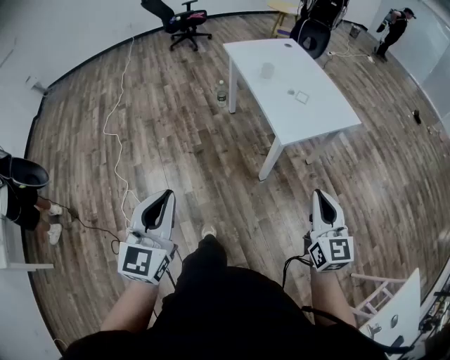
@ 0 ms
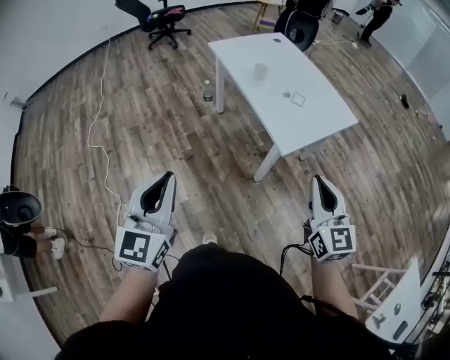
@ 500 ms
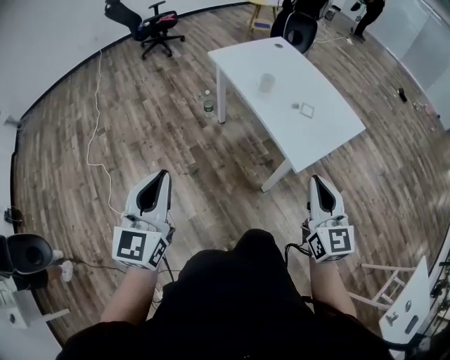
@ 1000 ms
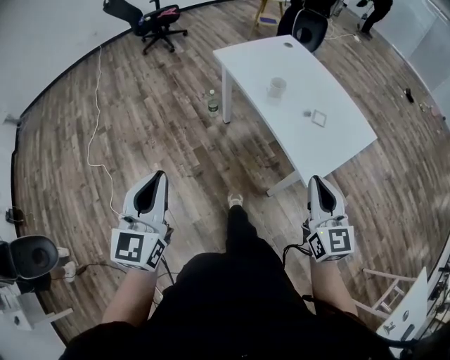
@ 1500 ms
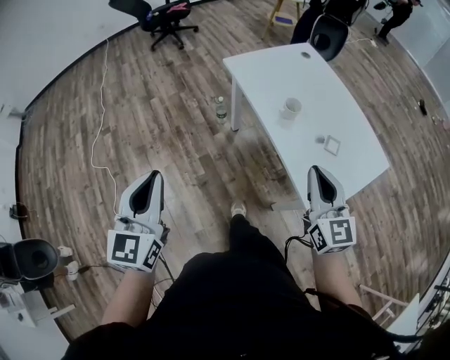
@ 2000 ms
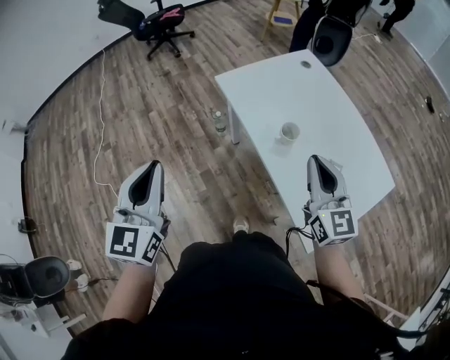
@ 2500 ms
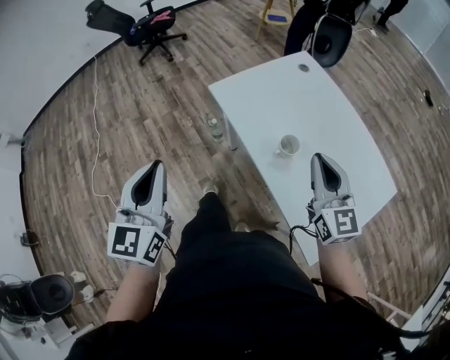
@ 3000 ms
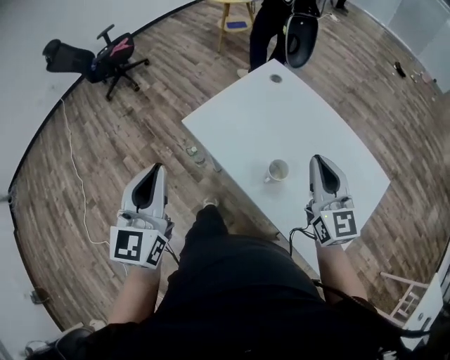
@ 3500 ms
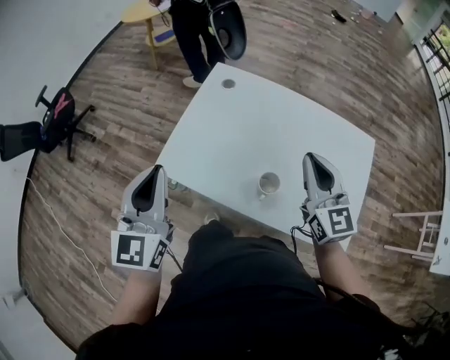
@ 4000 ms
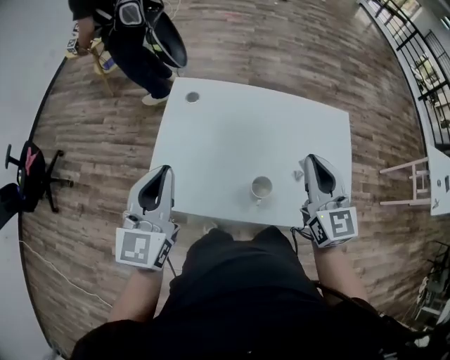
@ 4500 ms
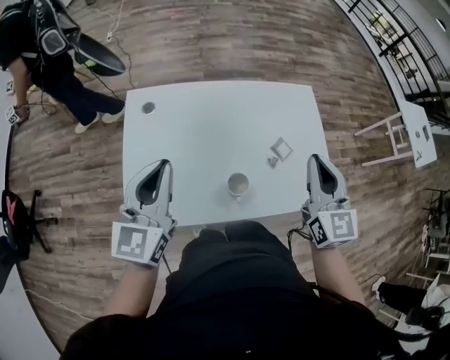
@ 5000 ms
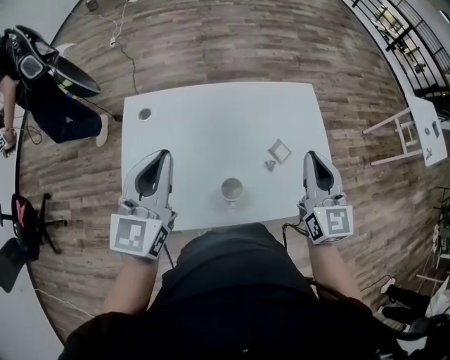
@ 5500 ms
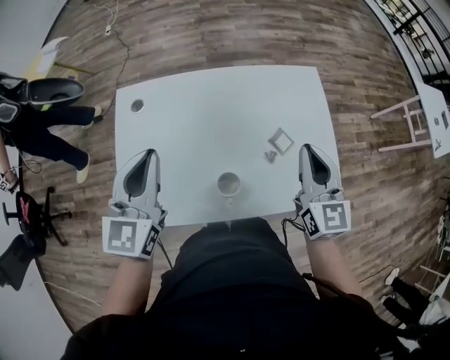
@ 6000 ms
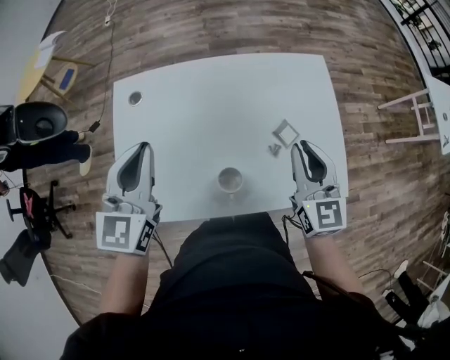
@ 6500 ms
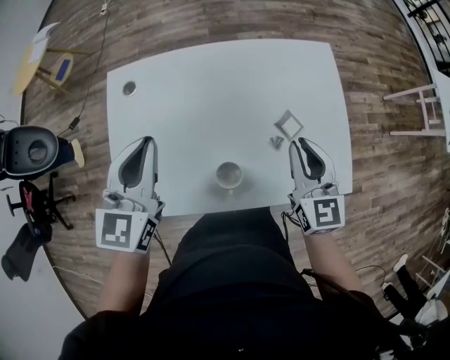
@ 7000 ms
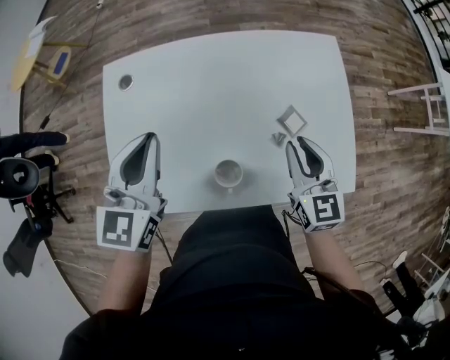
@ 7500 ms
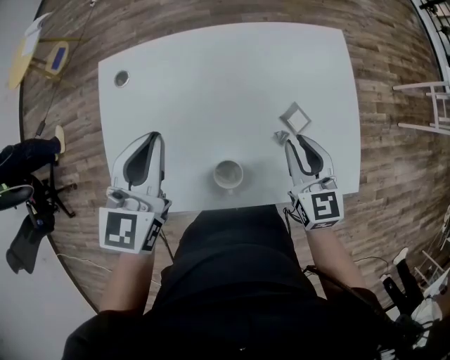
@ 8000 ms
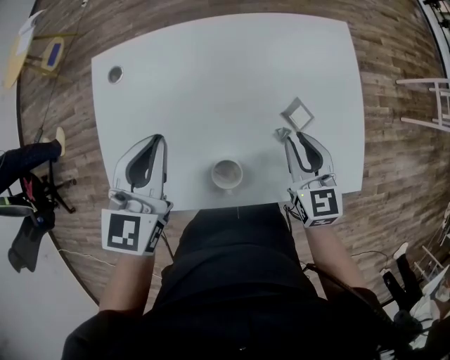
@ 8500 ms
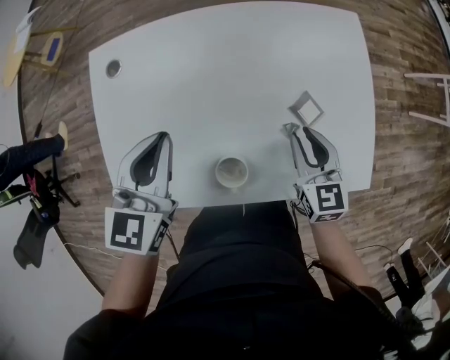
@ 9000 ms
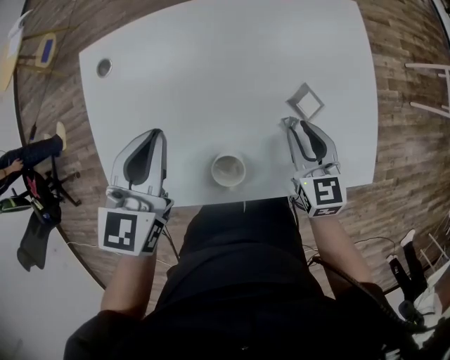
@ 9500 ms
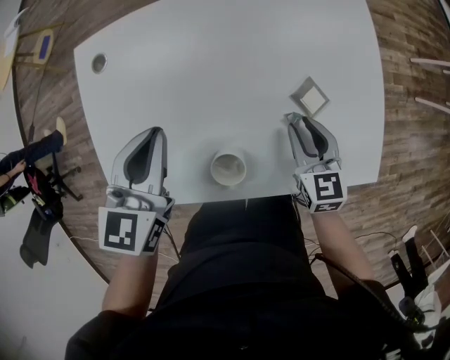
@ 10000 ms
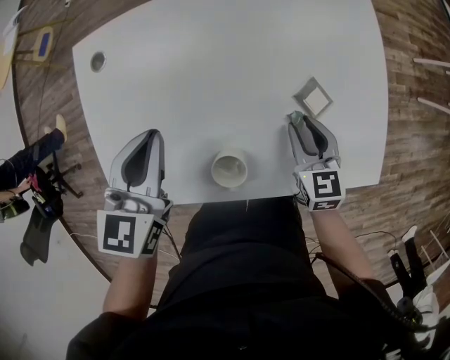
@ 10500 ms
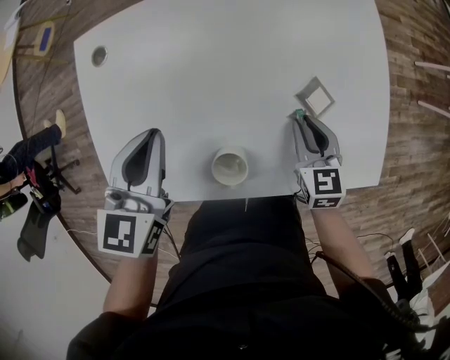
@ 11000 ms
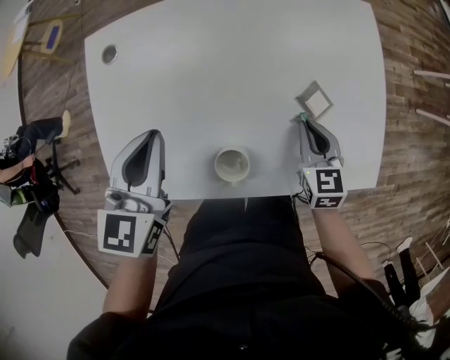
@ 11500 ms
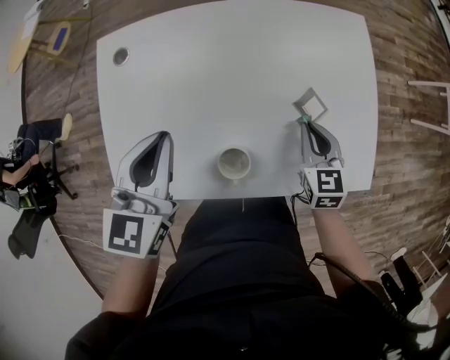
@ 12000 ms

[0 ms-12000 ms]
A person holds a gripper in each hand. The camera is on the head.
0 ms to 2000 ms: The left gripper moves forward, some 35 cm. Meanwhile the right gripper goes some 40 cm forward and to the left.
2000 ms to 4000 ms: The left gripper ends up about 50 cm from where it was, and rotates approximately 40 degrees. Meanwhile the right gripper moves roughly 25 cm, and turns by approximately 40 degrees.
4000 ms to 6000 ms: The left gripper shifts by some 20 cm, and rotates about 30 degrees. The right gripper ends up roughly 15 cm from where it was, and turns by approximately 40 degrees.
6000 ms to 8000 ms: The right gripper is displaced downward by some 10 cm, and opens; the left gripper changes place by roughly 5 cm.
8000 ms to 10000 ms: The two grippers go approximately 5 cm downward.
10000 ms to 12000 ms: The right gripper closes up.

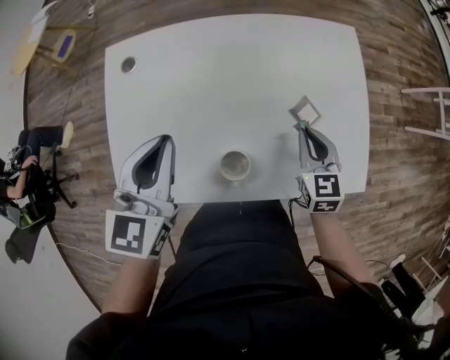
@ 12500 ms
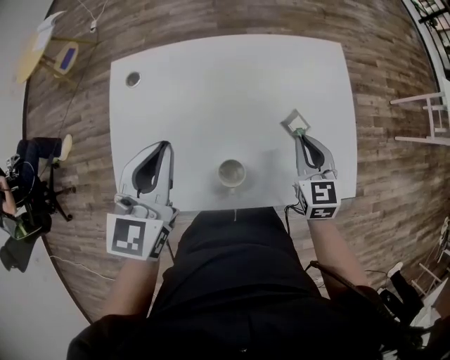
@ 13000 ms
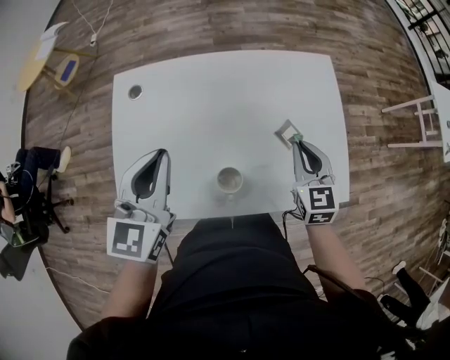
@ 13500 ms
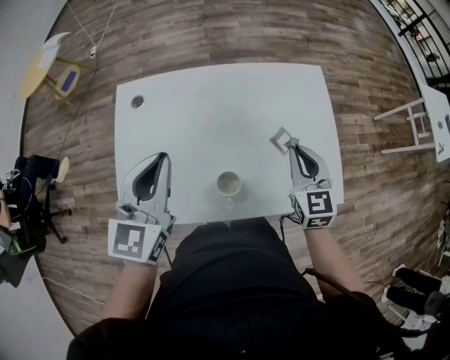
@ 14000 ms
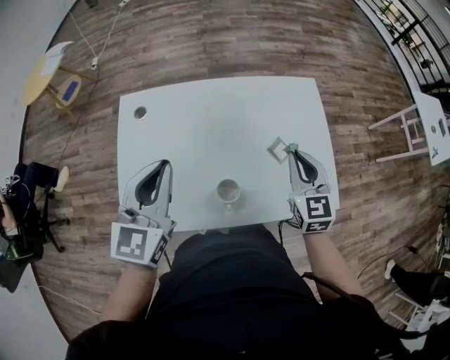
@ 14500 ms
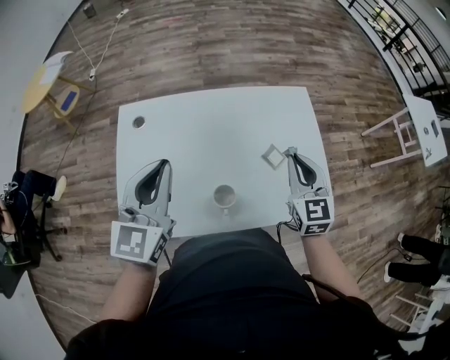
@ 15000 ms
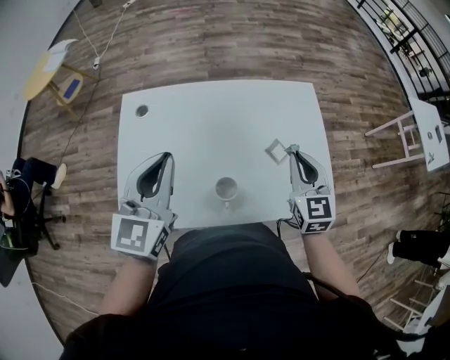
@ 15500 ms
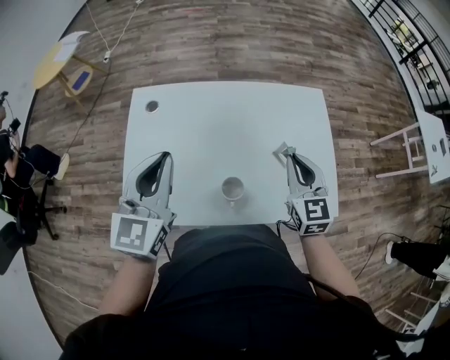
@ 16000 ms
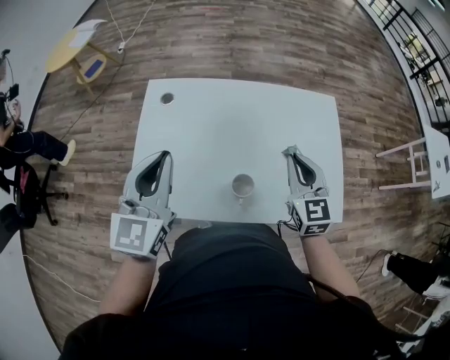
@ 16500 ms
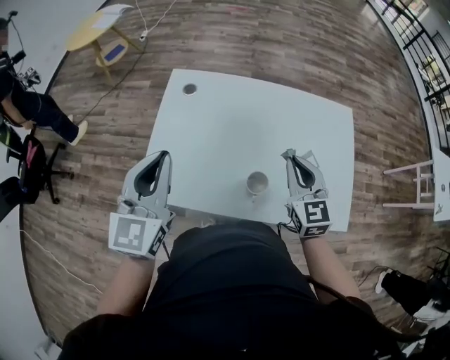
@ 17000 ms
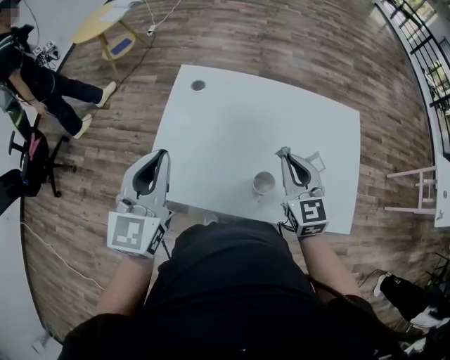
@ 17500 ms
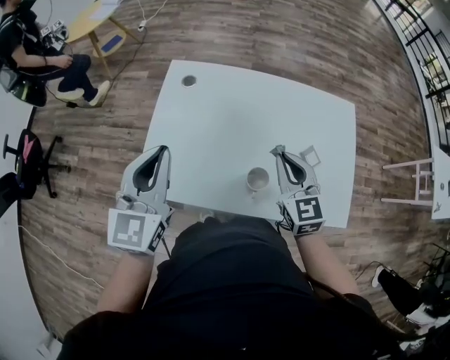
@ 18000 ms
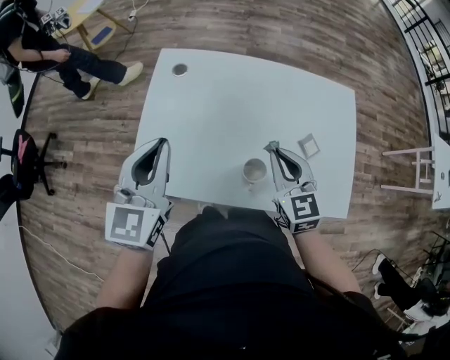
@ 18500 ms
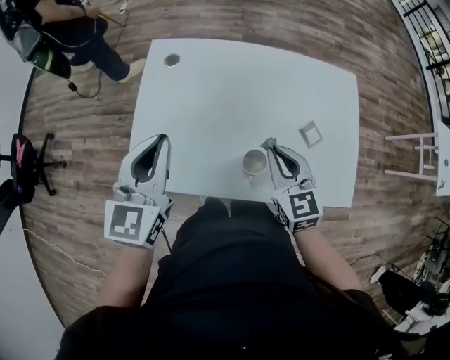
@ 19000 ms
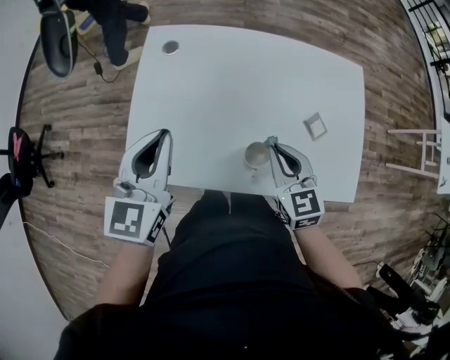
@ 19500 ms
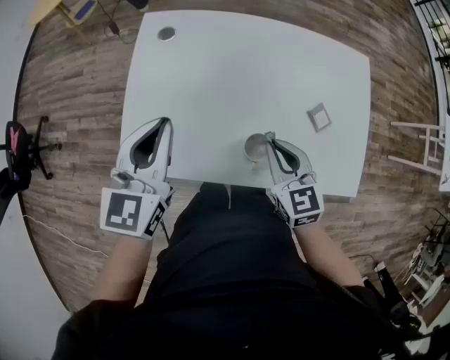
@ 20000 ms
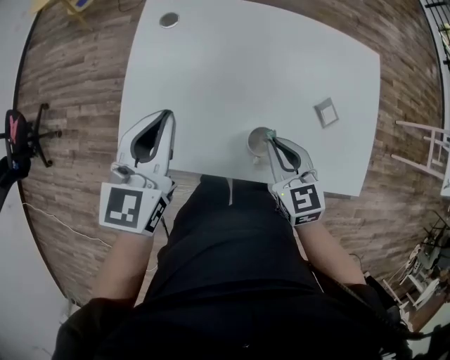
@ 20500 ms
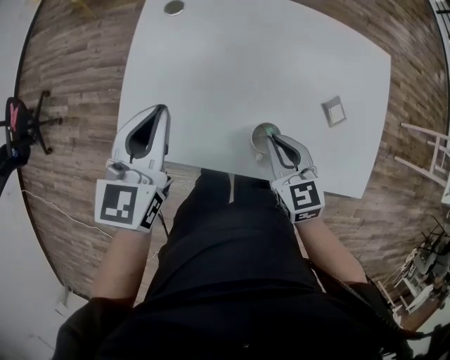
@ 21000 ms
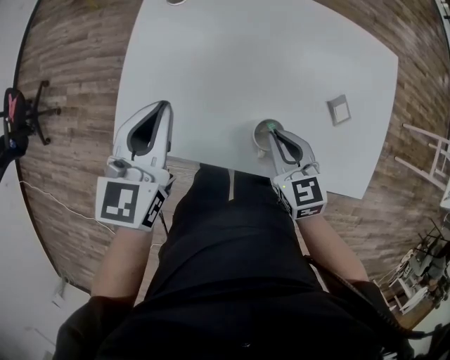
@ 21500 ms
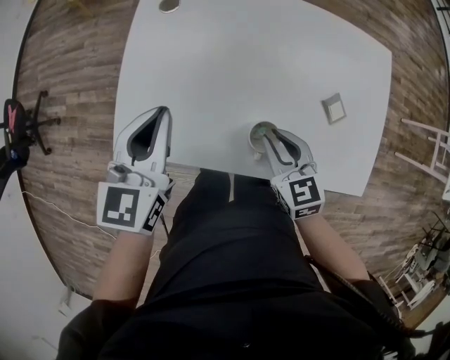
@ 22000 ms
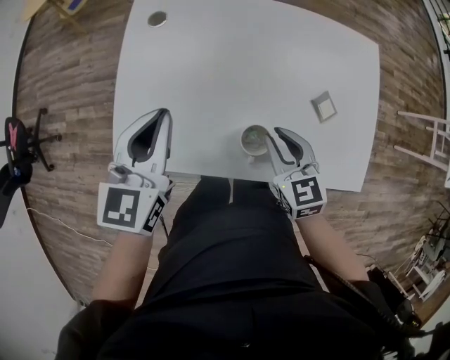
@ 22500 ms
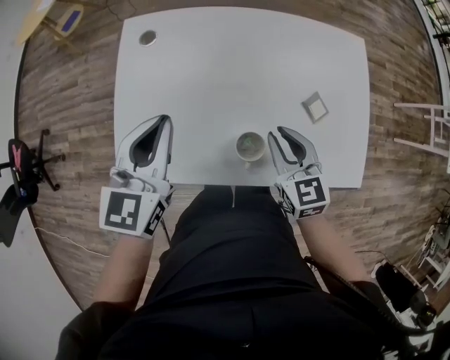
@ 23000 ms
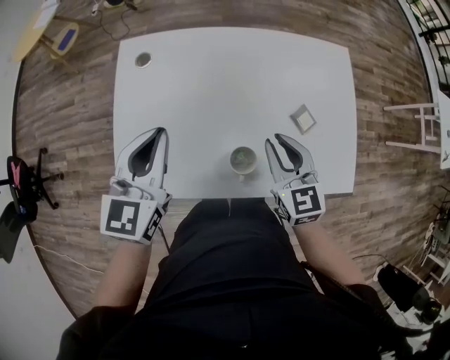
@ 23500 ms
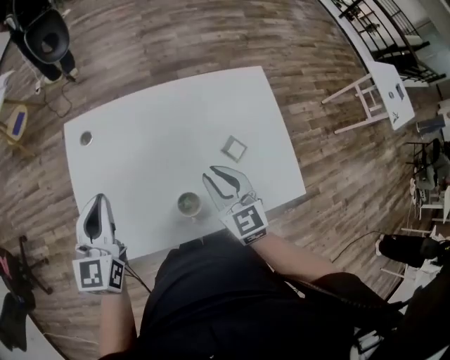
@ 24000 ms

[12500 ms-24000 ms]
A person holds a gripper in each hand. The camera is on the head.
12500 ms to 14500 ms: The right gripper heads upward, covering approximately 10 cm. The left gripper goes about 5 cm upward.
14500 ms to 16500 ms: The right gripper shifts roughly 5 cm to the left; the left gripper shifts by approximately 5 cm.
16500 ms to 18500 ms: The right gripper shifts about 10 cm to the left.
18500 ms to 20000 ms: The right gripper travels downward by roughly 5 cm.
20000 ms to 22000 ms: There are only small adjustments of the grippers.
22000 ms to 24000 ms: The left gripper moves forward, about 5 cm. The right gripper travels upward and forward by roughly 10 cm, and swivels about 30 degrees.

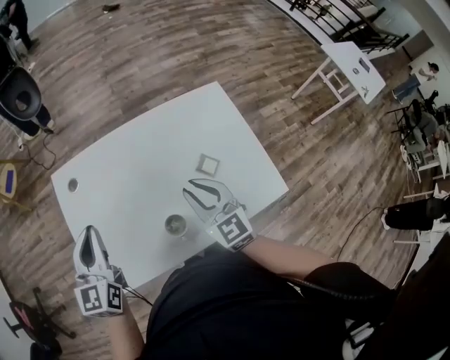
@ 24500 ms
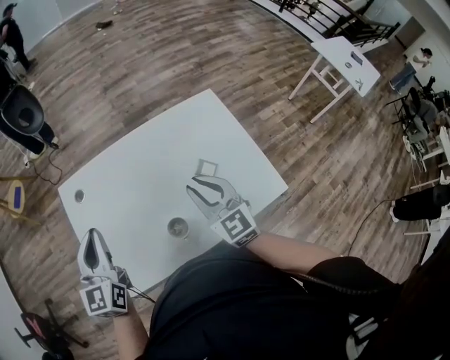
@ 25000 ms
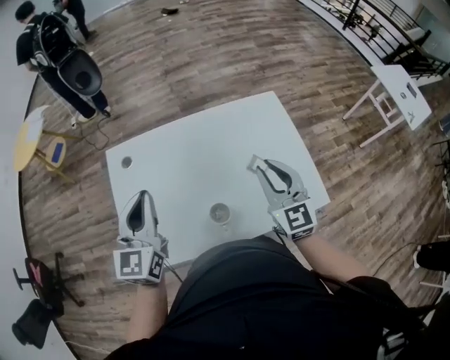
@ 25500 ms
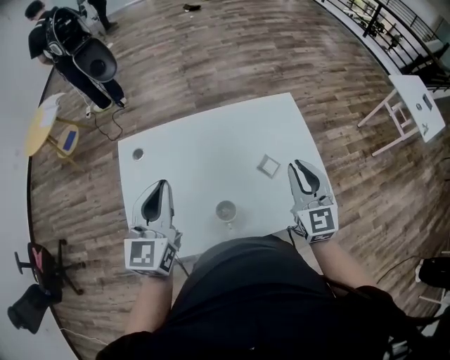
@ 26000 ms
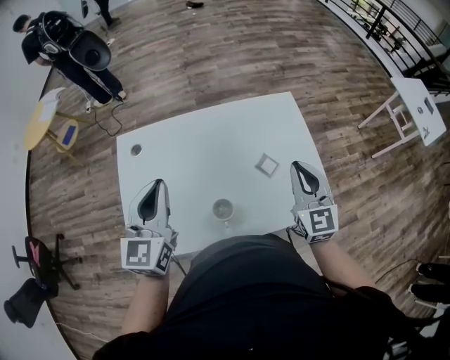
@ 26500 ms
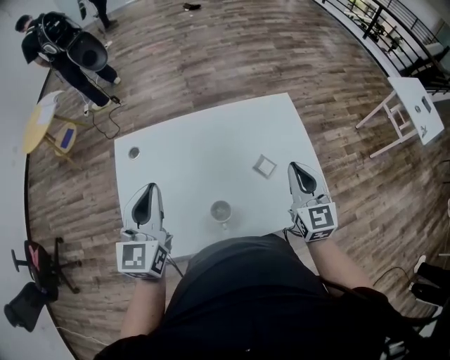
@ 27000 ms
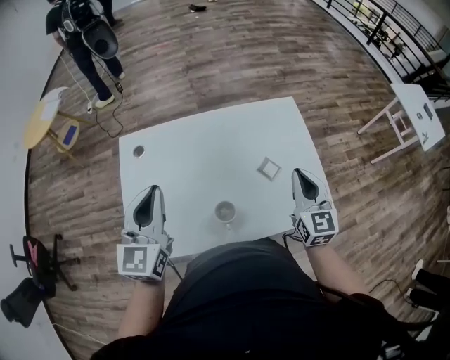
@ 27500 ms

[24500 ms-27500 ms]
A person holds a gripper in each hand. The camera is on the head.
24500 ms to 26000 ms: The right gripper travels to the right and upward by roughly 15 cm. The left gripper travels to the right by approximately 5 cm.
26000 ms to 27500 ms: There are only small adjustments of the grippers.
